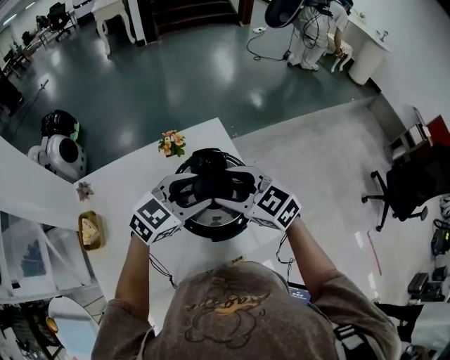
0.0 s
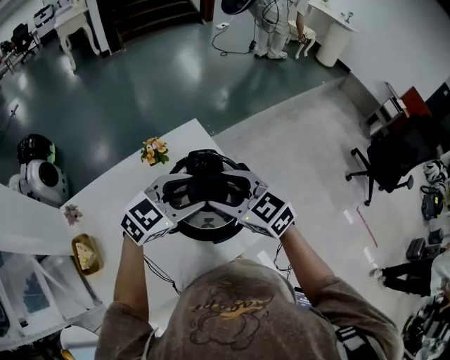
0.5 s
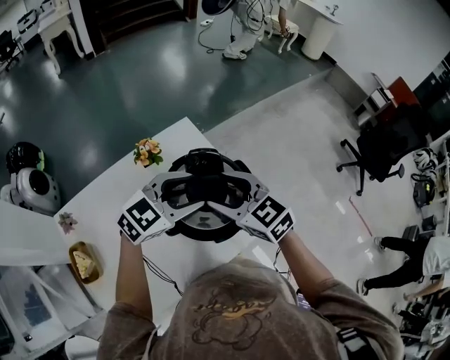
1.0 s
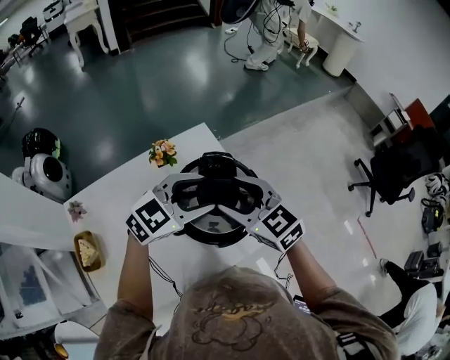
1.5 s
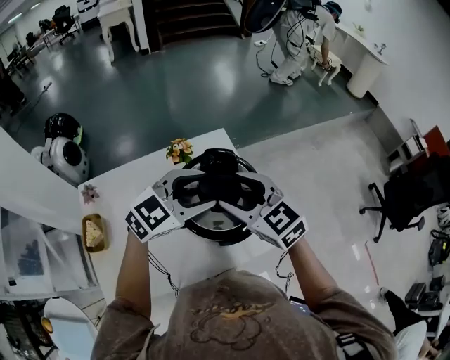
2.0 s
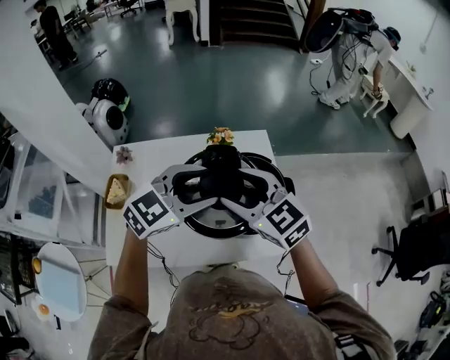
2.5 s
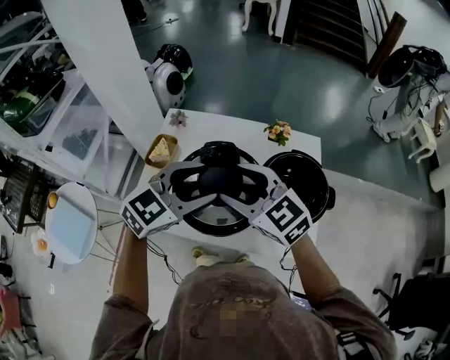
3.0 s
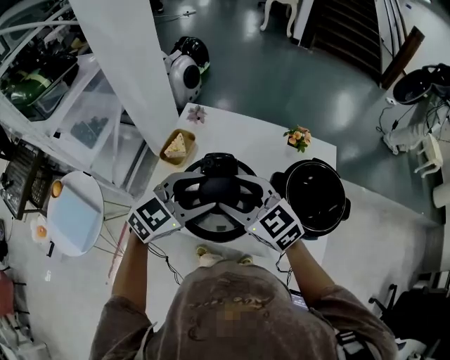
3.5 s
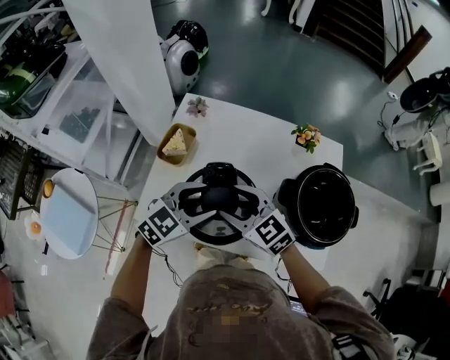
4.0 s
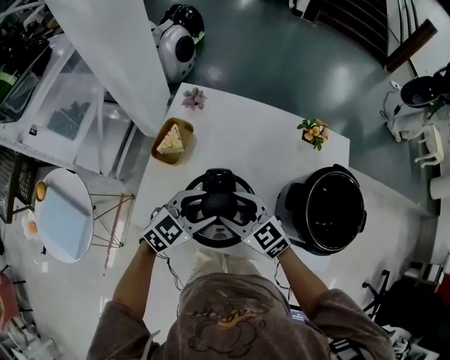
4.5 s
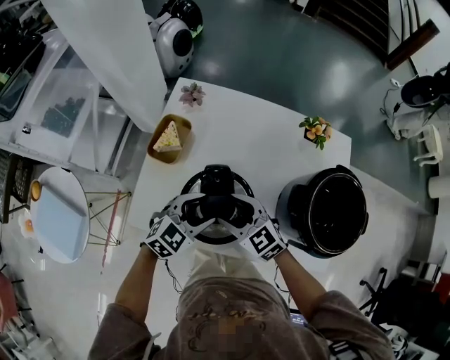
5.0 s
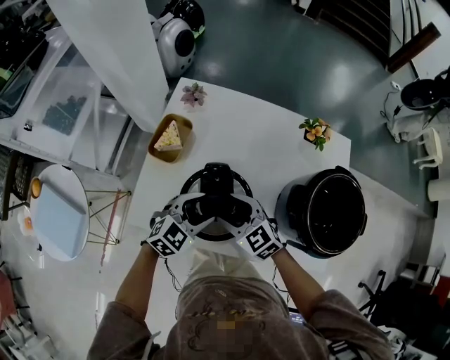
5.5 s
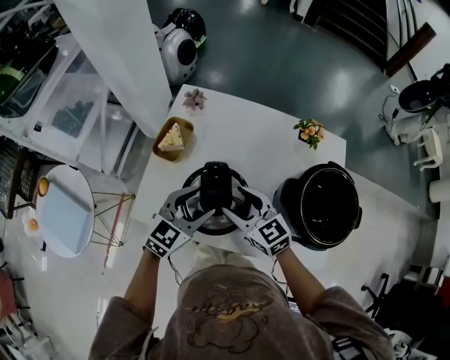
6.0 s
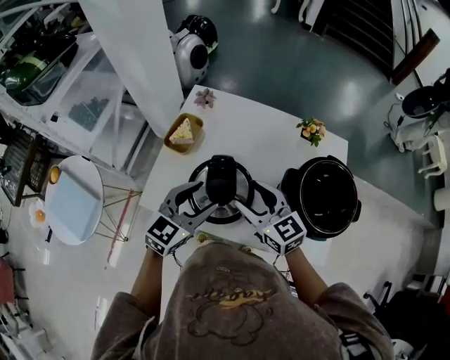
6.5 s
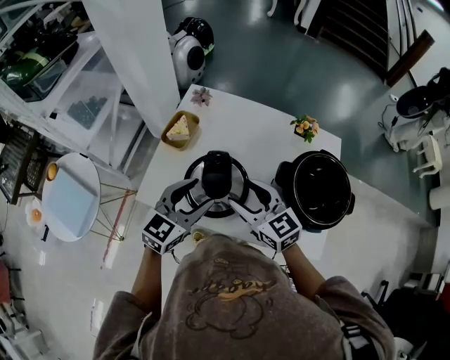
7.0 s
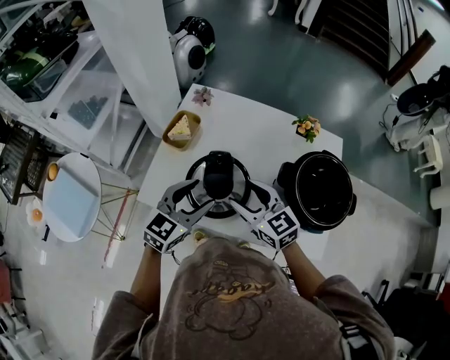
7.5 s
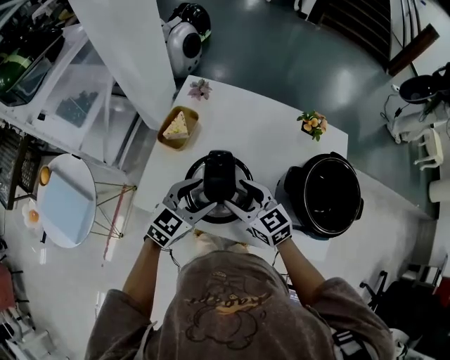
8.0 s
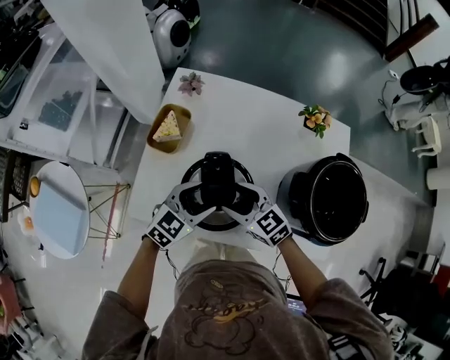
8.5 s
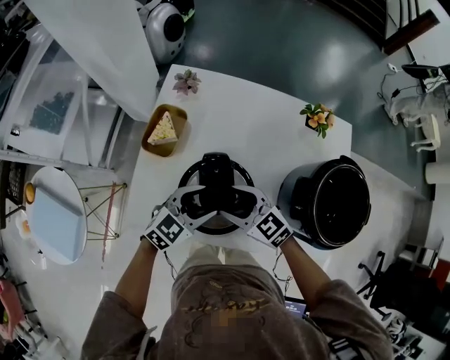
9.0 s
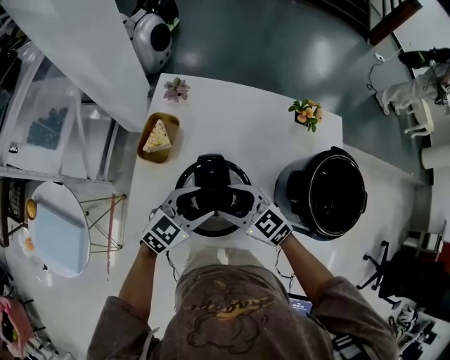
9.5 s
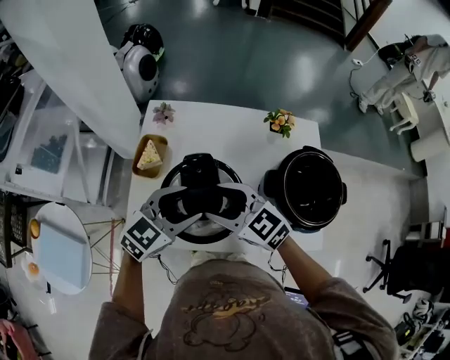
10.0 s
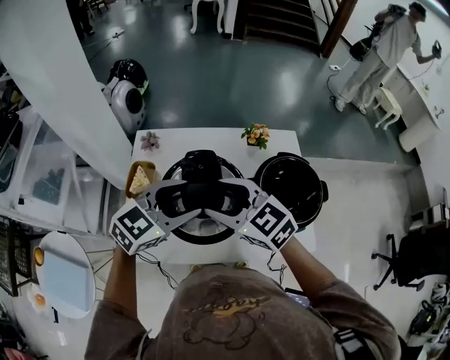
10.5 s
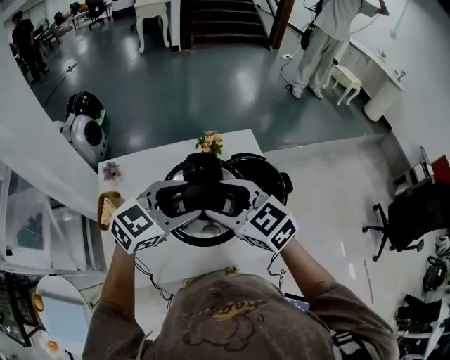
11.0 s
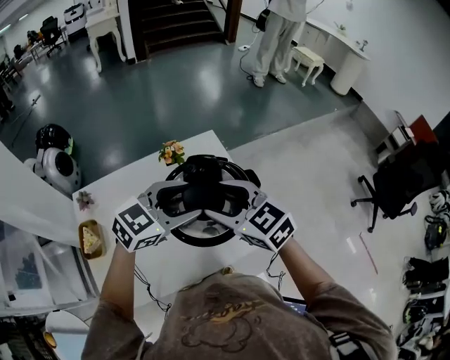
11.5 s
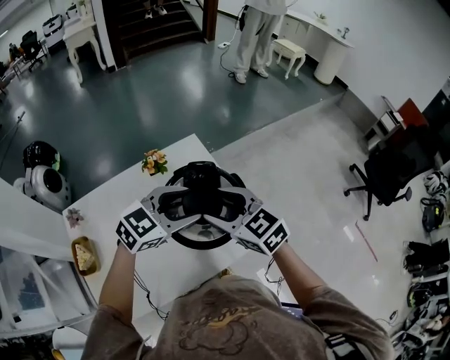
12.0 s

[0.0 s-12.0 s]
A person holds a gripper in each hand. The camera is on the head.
0.0 to 2.0 s: The grippers both shift upward by approximately 5 cm.
2.0 to 4.0 s: The left gripper ends up roughly 35 cm from where it was, and turns by roughly 40 degrees. Meanwhile the right gripper moves about 35 cm, and turns by some 40 degrees.
4.0 to 6.0 s: The right gripper moves downward, about 5 cm. The left gripper travels downward and back again, about 10 cm each way.
6.0 to 8.0 s: The right gripper reaches about 5 cm upward, then returns.
8.0 to 10.0 s: Both grippers move upward, about 10 cm.
10.0 to 12.0 s: The right gripper moves approximately 30 cm, and turns by approximately 40 degrees. Meanwhile the left gripper shifts by approximately 35 cm, and turns by some 40 degrees.

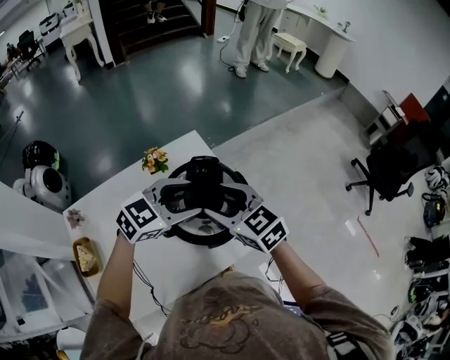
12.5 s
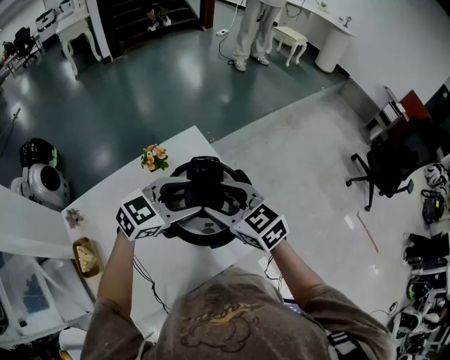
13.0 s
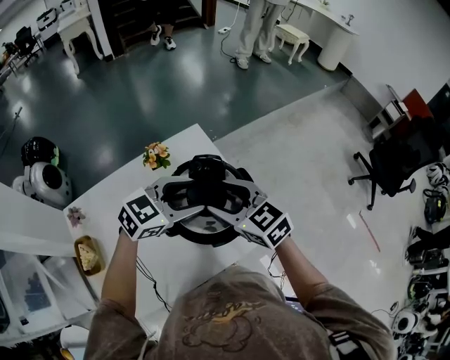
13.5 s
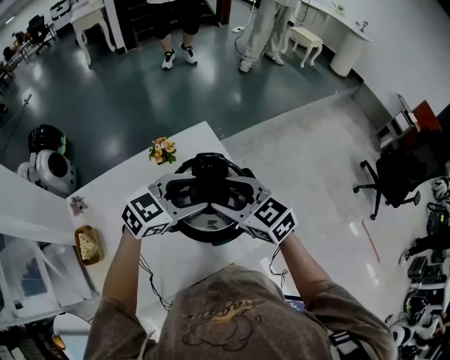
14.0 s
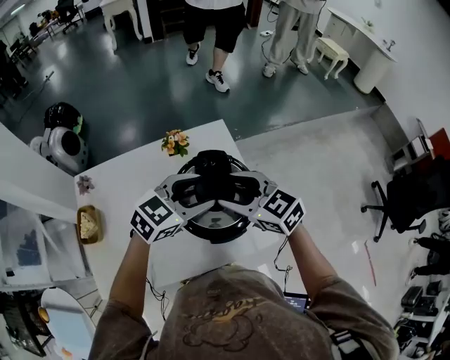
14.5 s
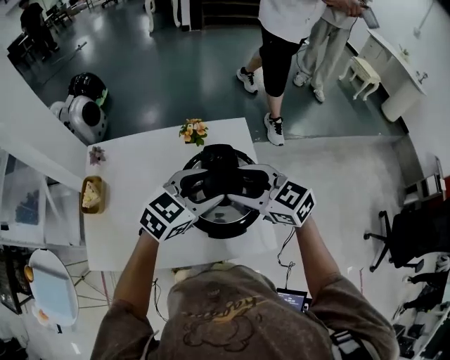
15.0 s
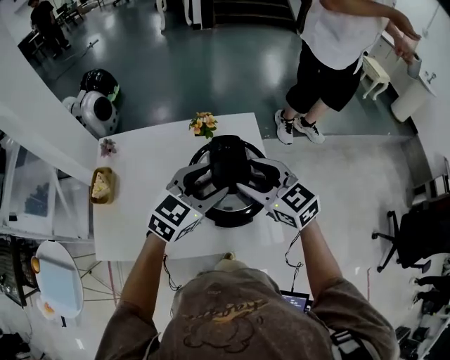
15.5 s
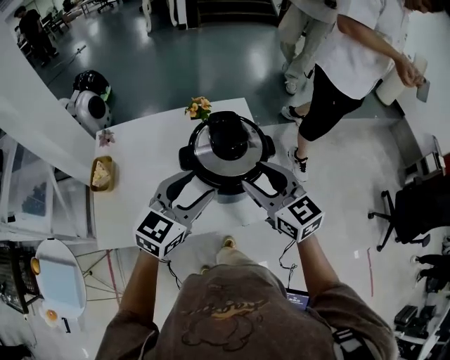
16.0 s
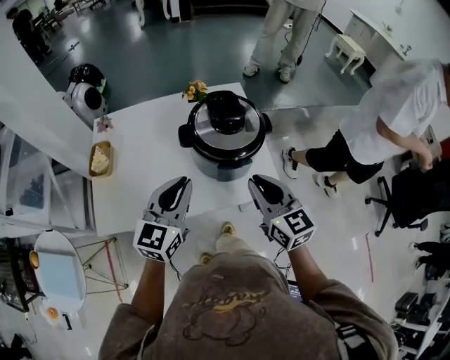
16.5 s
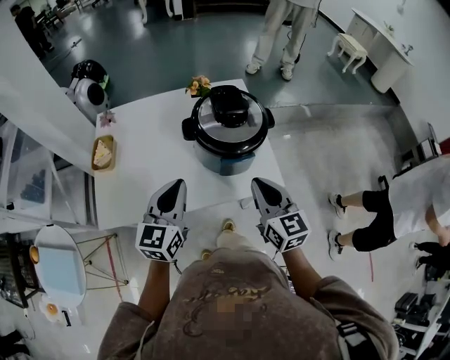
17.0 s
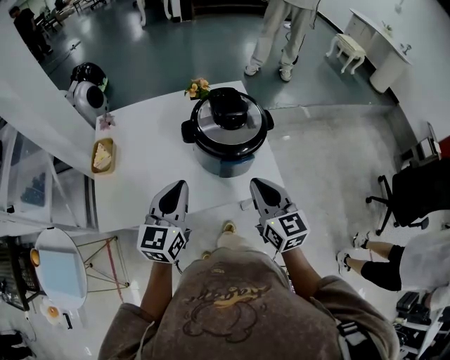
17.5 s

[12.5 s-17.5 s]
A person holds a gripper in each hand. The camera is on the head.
12.5 to 15.0 s: The right gripper changes its angle by approximately 30 degrees; the left gripper swivels roughly 30 degrees.
15.0 to 17.5 s: The right gripper travels backward by roughly 20 cm, swivels roughly 40 degrees, and closes its fingers. The left gripper moves backward and to the left, about 25 cm, swivels roughly 40 degrees, and closes up.

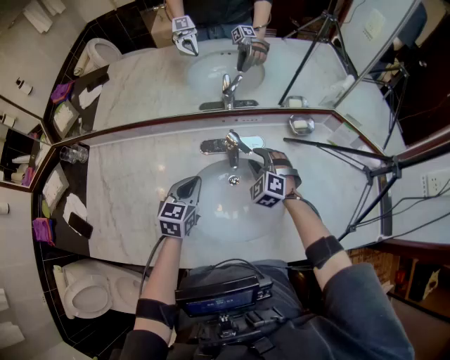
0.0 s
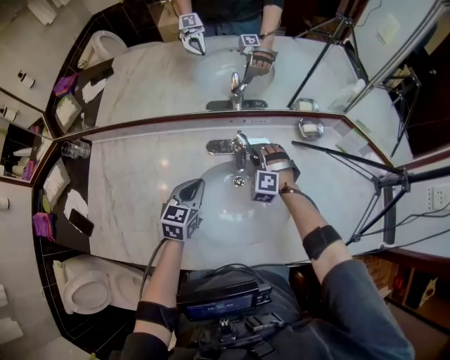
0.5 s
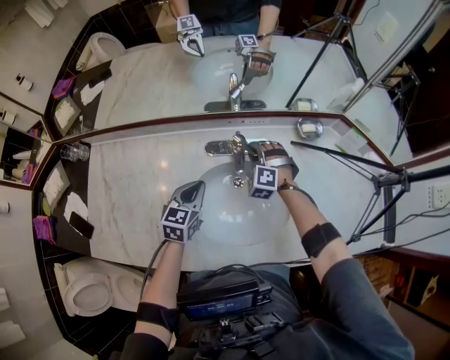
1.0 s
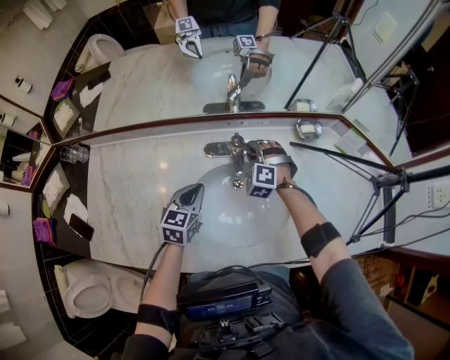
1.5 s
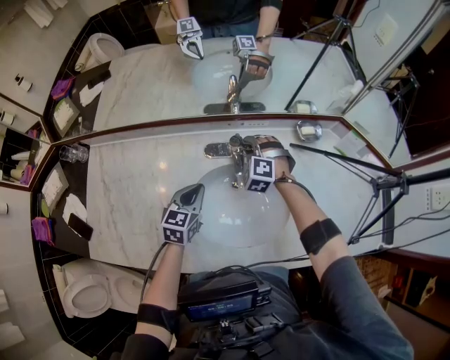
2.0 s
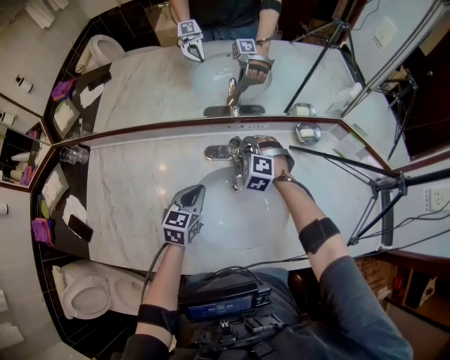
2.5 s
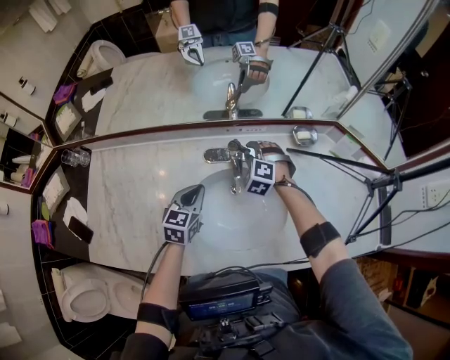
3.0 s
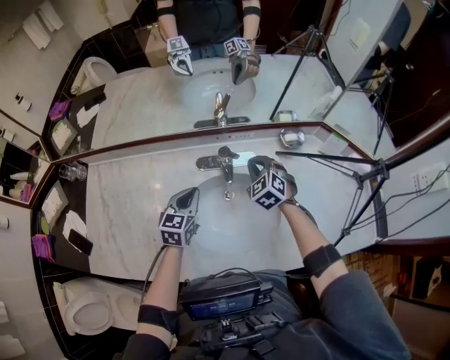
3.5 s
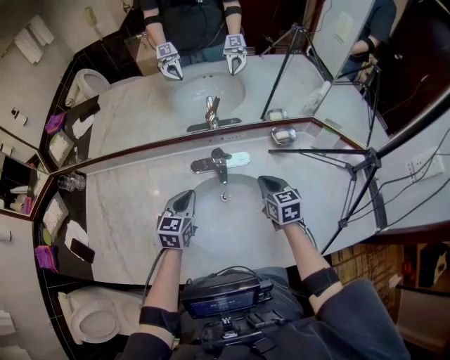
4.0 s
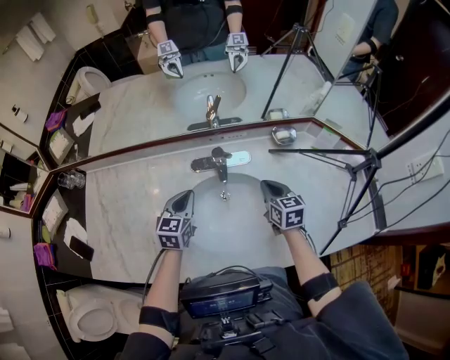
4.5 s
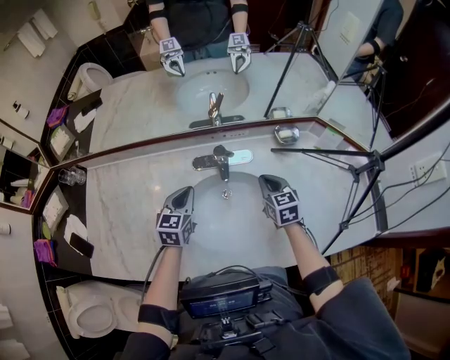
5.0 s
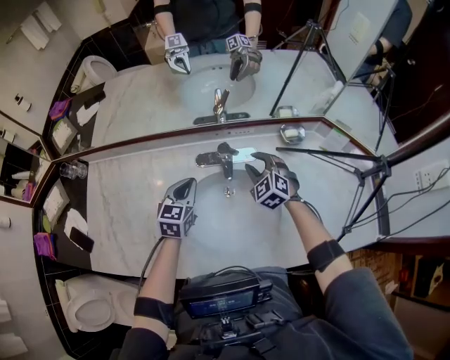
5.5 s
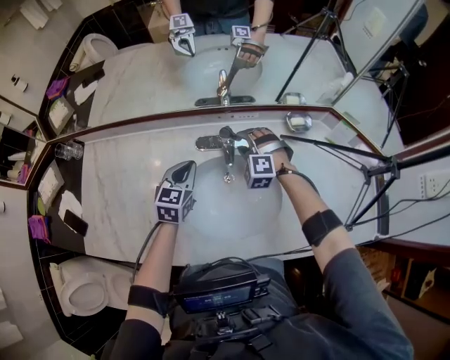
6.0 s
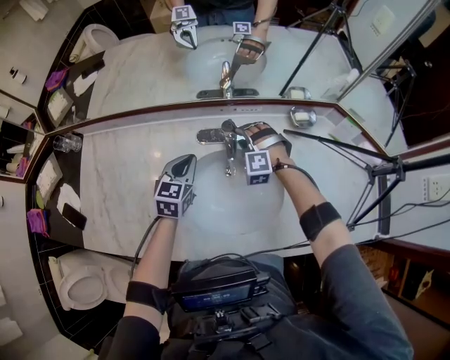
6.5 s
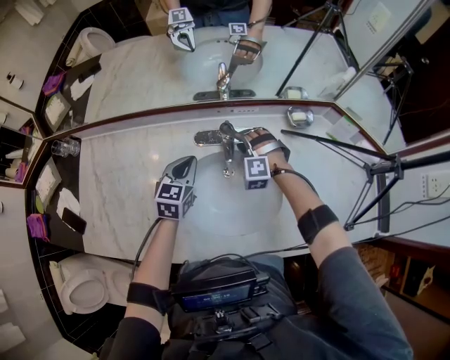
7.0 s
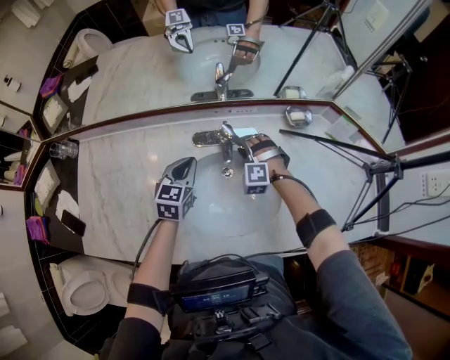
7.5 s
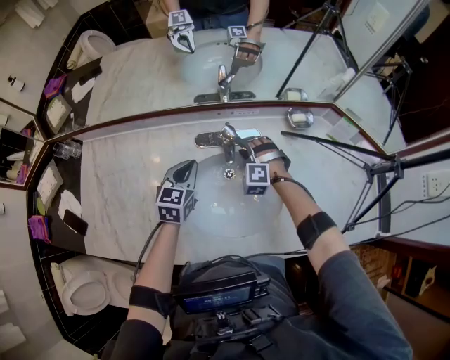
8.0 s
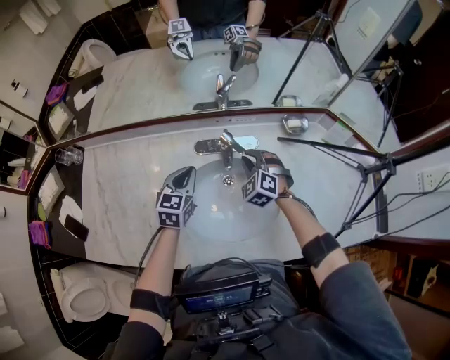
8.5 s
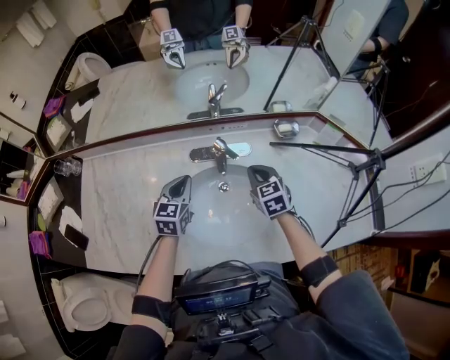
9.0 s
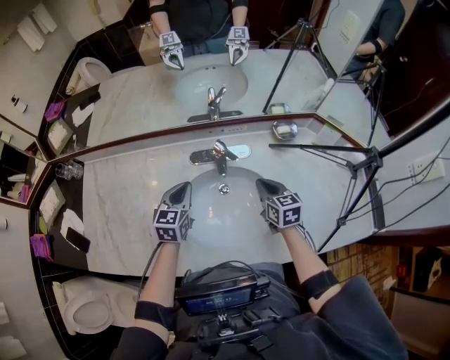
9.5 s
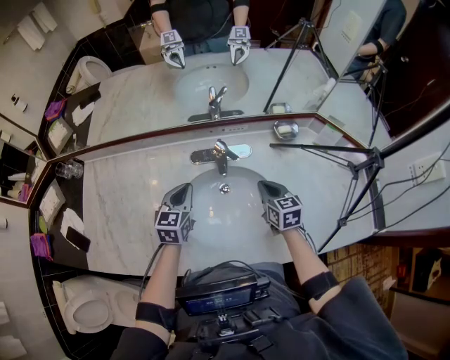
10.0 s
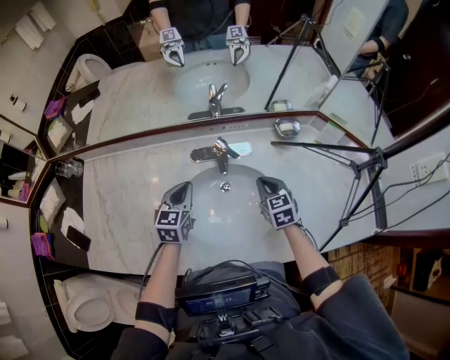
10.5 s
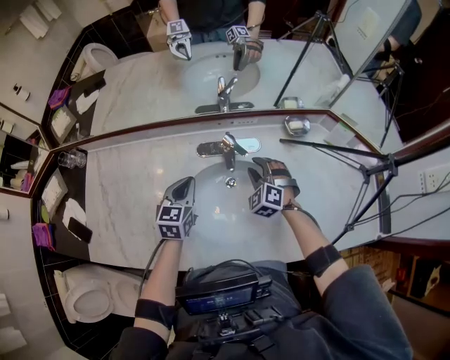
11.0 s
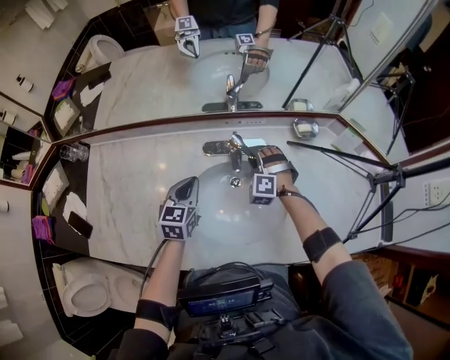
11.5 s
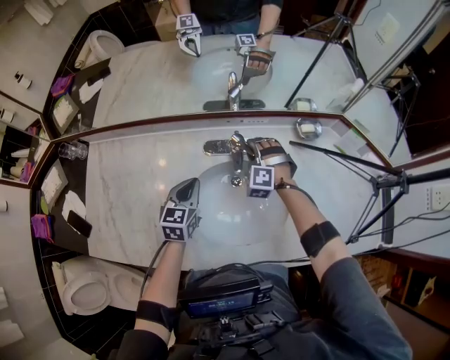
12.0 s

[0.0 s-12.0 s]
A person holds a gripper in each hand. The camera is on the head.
0.0 to 2.0 s: The right gripper goes approximately 10 cm forward and to the left.
2.0 to 4.0 s: The right gripper shifts some 15 cm to the right and backward, rotates around the line of its fingers by approximately 70 degrees, clockwise from behind, and closes its fingers.
4.0 to 6.0 s: The right gripper goes some 15 cm to the left and forward, twists some 80 degrees counterclockwise, seen from behind, and opens.
6.0 to 8.0 s: The right gripper travels downward by about 5 cm.
8.0 to 10.0 s: The right gripper shifts approximately 15 cm backward, to the right and upward, rotates around the line of its fingers by roughly 80 degrees, clockwise from behind, and closes.
10.0 to 12.0 s: The right gripper is displaced forward and to the left by about 15 cm, rotates around the line of its fingers by some 90 degrees, counterclockwise from behind, and opens up.
